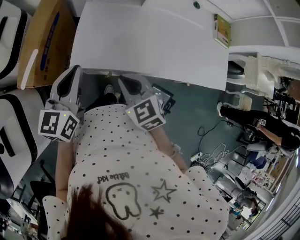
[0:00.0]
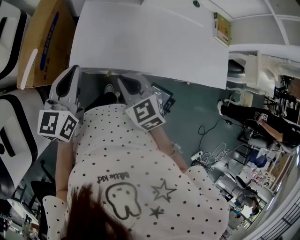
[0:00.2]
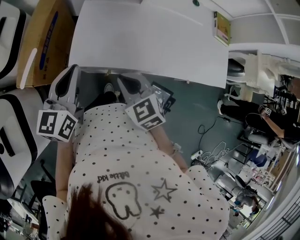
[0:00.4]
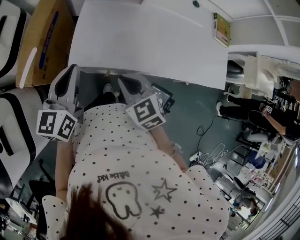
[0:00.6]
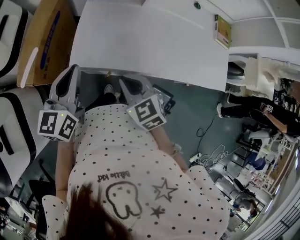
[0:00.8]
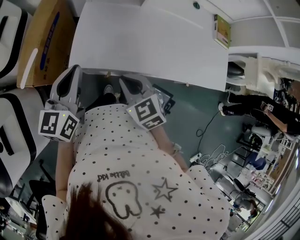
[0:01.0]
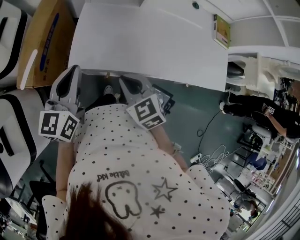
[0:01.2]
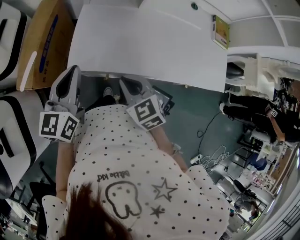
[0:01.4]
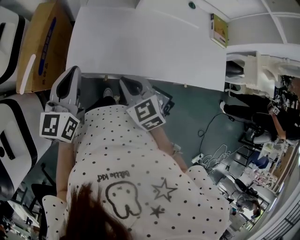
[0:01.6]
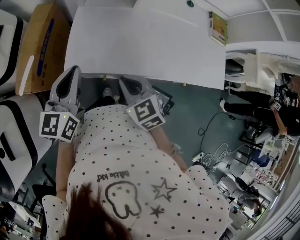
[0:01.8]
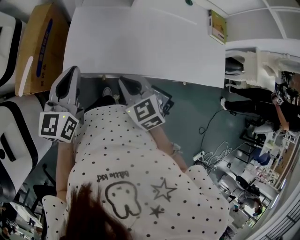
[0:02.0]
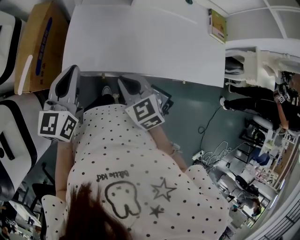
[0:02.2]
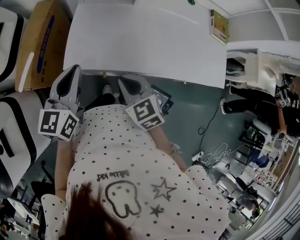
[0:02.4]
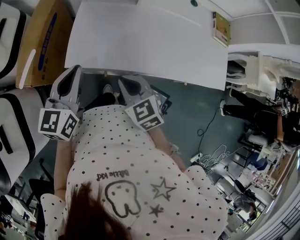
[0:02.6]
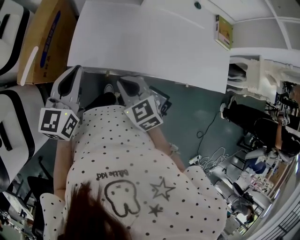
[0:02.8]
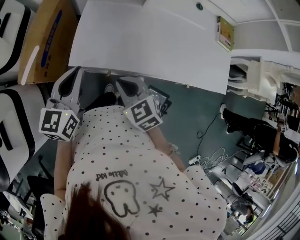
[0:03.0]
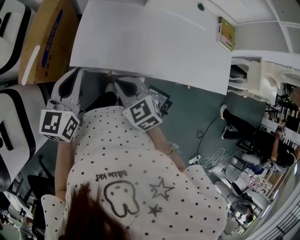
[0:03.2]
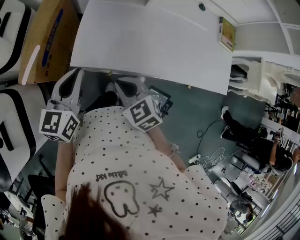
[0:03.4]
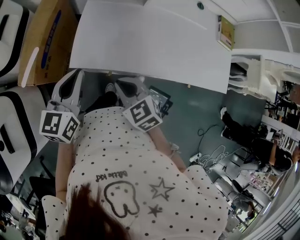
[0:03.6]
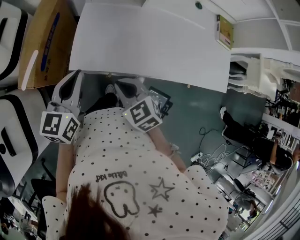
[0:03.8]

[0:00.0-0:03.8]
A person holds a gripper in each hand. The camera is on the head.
0:00.0 to 0:03.8: There are only small adjustments of the grippers.

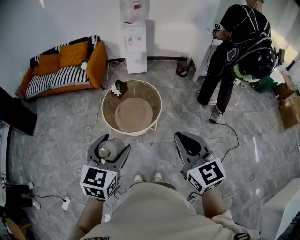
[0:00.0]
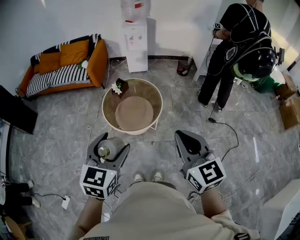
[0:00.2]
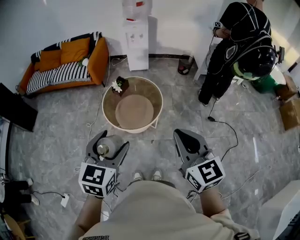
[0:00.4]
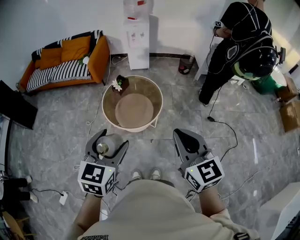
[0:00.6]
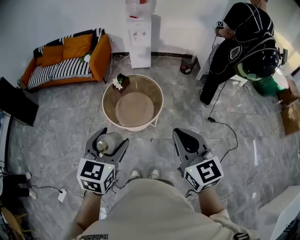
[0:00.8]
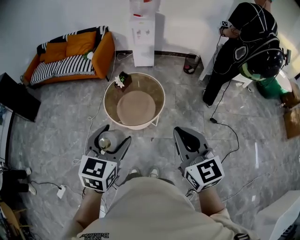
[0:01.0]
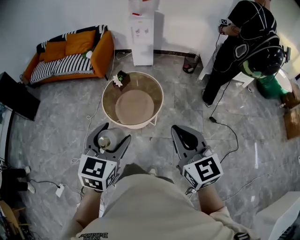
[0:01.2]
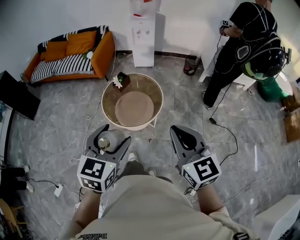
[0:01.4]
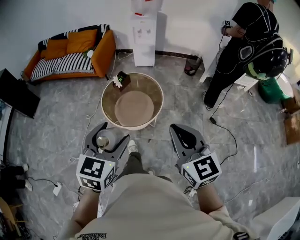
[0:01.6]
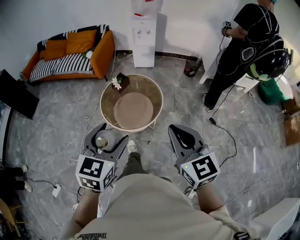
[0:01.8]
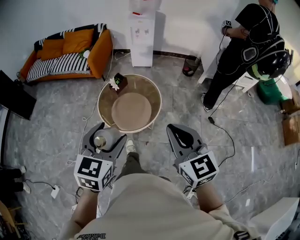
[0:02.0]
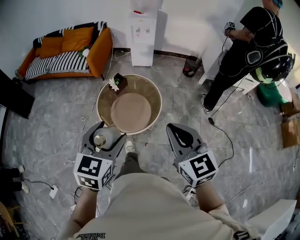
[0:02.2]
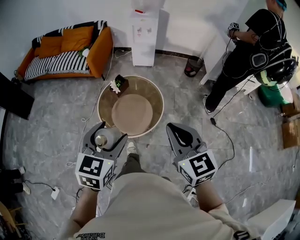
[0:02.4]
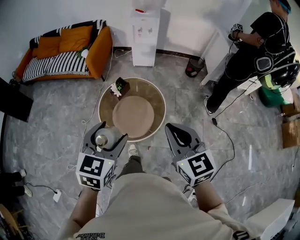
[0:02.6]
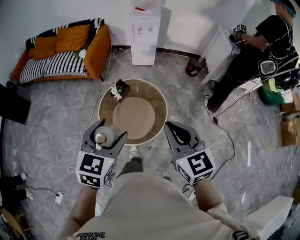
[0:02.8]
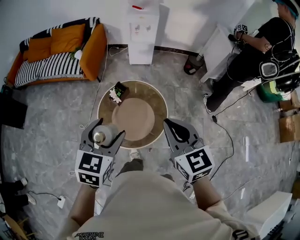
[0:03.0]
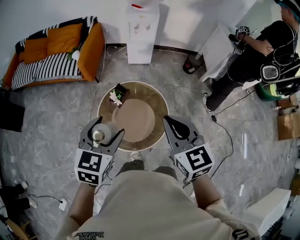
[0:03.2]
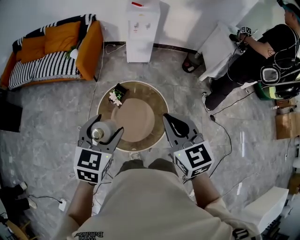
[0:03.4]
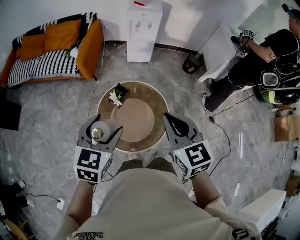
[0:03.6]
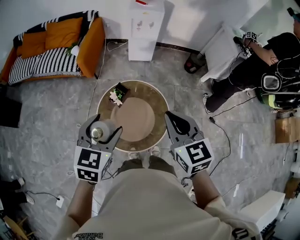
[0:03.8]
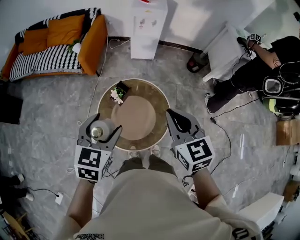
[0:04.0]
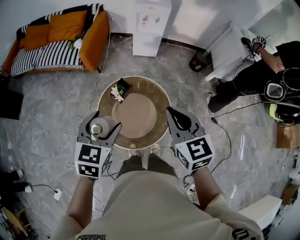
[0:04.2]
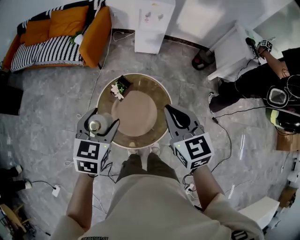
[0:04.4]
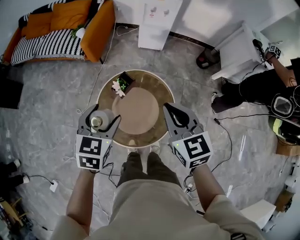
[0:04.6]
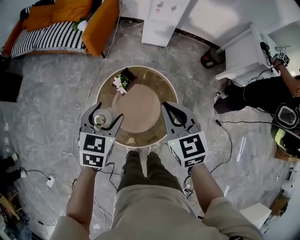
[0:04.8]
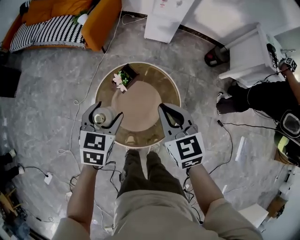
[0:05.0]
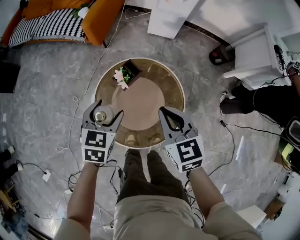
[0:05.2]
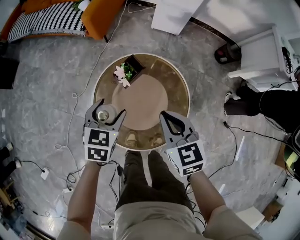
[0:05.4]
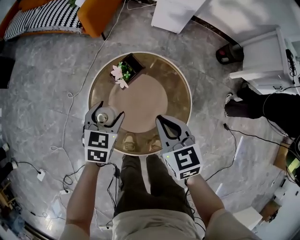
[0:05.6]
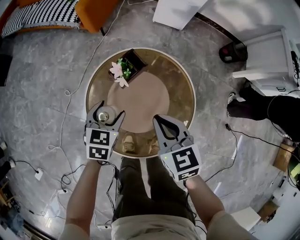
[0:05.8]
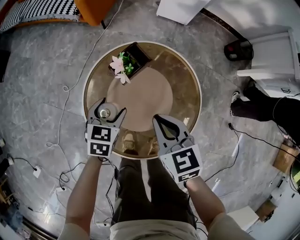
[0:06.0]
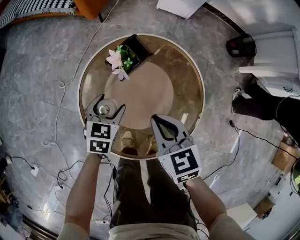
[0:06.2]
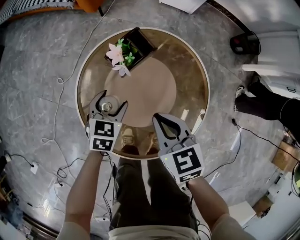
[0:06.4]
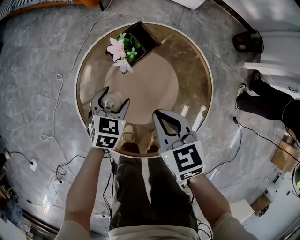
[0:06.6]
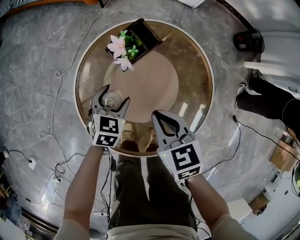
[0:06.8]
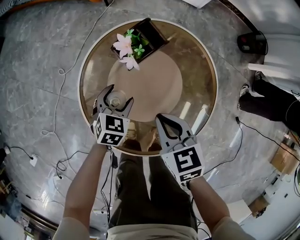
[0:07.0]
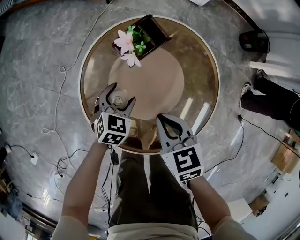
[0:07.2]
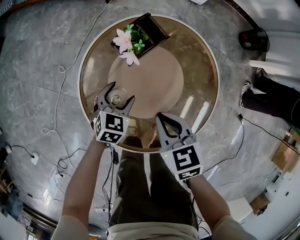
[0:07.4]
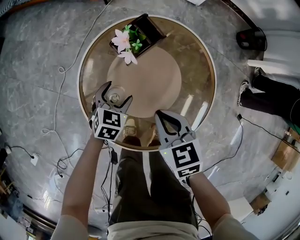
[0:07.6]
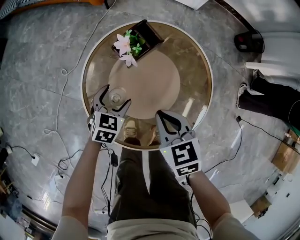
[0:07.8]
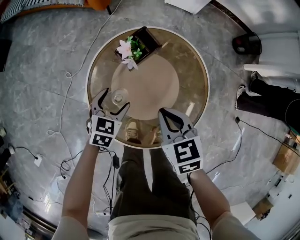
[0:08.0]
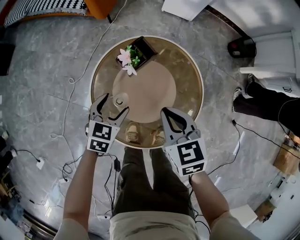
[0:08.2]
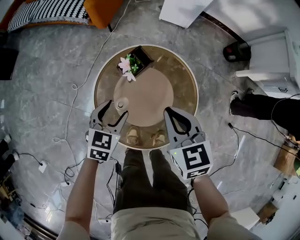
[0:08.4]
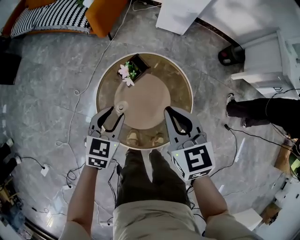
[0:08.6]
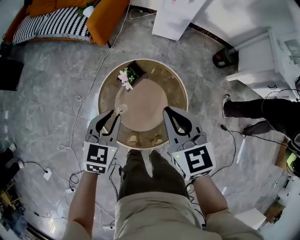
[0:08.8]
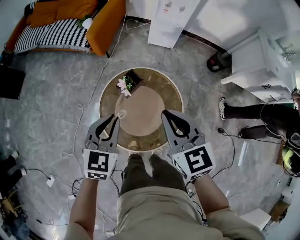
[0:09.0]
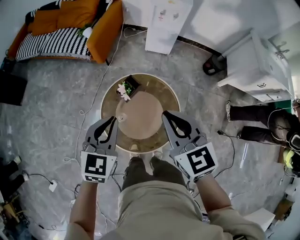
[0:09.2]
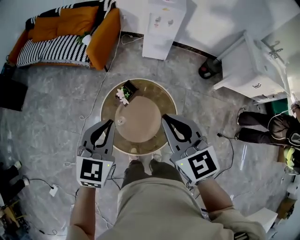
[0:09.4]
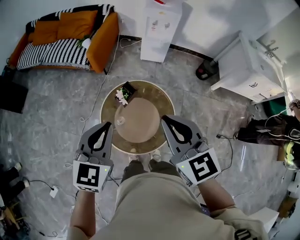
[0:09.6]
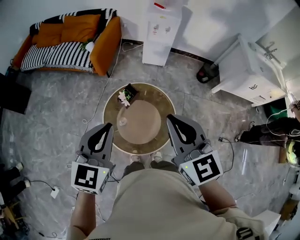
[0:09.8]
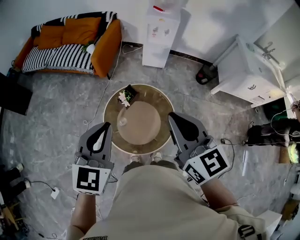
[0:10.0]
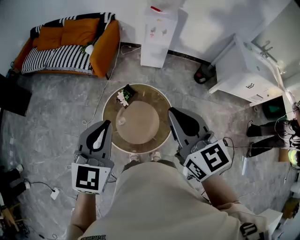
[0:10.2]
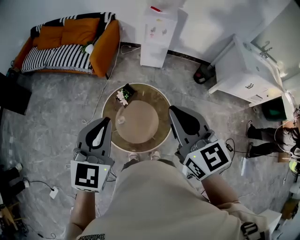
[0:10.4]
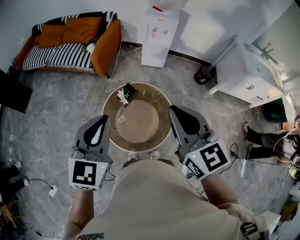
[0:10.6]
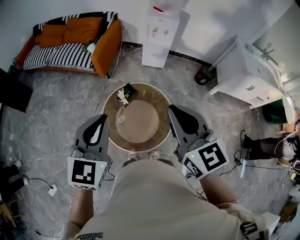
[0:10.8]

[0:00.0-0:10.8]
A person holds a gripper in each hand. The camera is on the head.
0:00.0 to 0:01.6: The left gripper is displaced to the right by roughly 5 cm. The right gripper changes place by approximately 5 cm.
0:01.6 to 0:03.0: Both grippers move forward, roughly 30 cm.
0:03.0 to 0:04.6: Both grippers travel together forward and downward, roughly 20 cm.
0:04.6 to 0:06.2: Both grippers travel together downward, about 40 cm. The right gripper swivels approximately 20 degrees.
0:06.2 to 0:07.8: The left gripper moves some 5 cm.
0:07.8 to 0:09.2: Both grippers move upward, about 50 cm. The right gripper turns by approximately 30 degrees. Meanwhile the left gripper turns by about 20 degrees, and closes up.
0:09.2 to 0:10.8: Both grippers travel together upward and backward, some 20 cm.

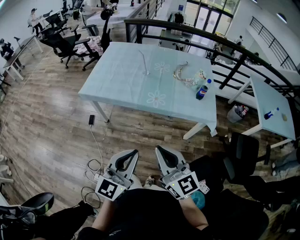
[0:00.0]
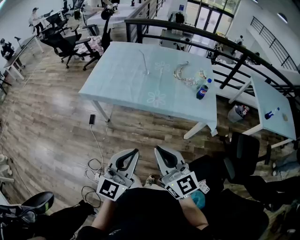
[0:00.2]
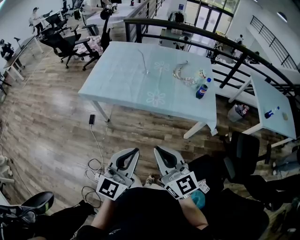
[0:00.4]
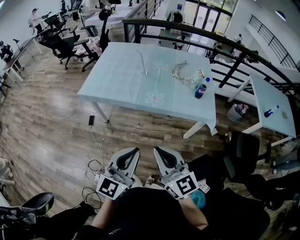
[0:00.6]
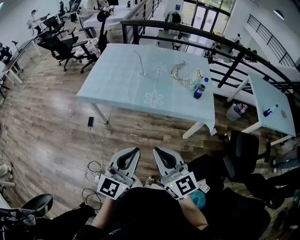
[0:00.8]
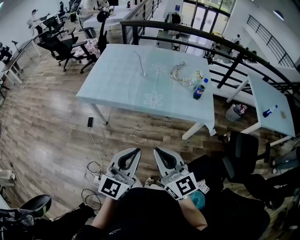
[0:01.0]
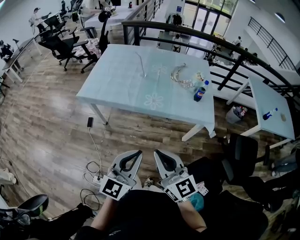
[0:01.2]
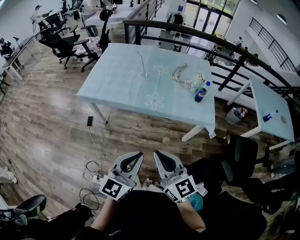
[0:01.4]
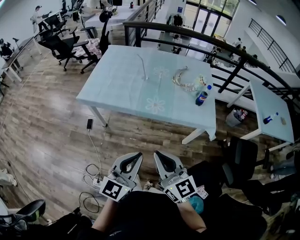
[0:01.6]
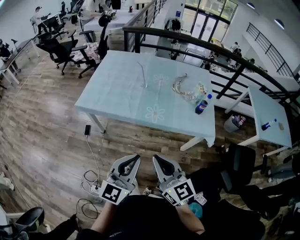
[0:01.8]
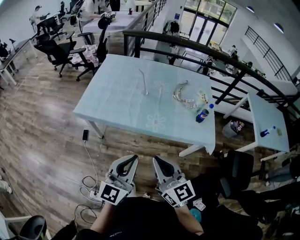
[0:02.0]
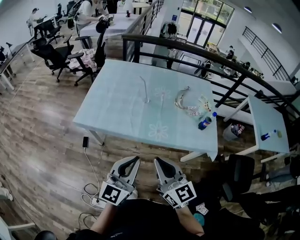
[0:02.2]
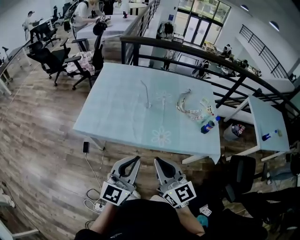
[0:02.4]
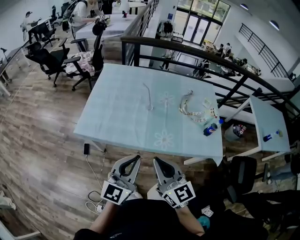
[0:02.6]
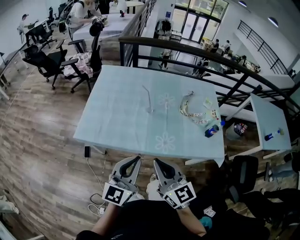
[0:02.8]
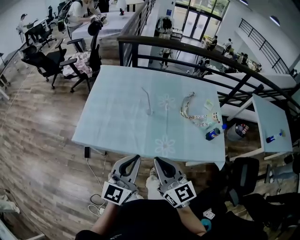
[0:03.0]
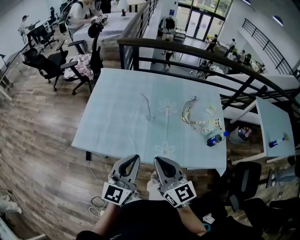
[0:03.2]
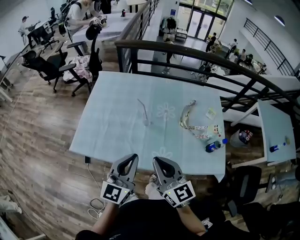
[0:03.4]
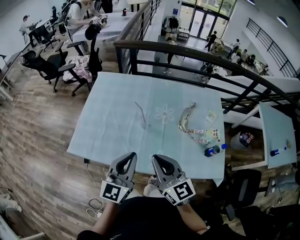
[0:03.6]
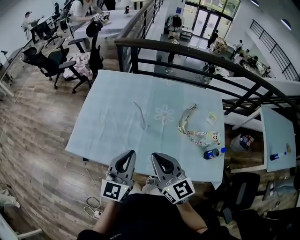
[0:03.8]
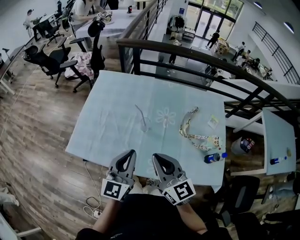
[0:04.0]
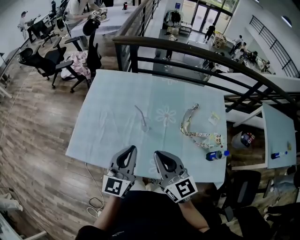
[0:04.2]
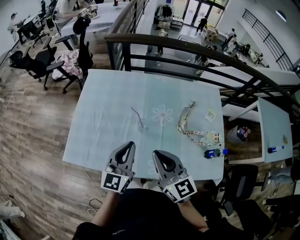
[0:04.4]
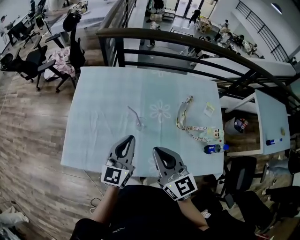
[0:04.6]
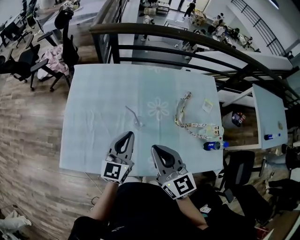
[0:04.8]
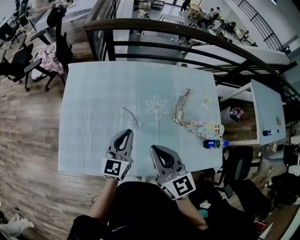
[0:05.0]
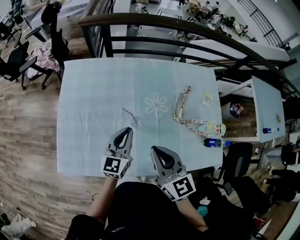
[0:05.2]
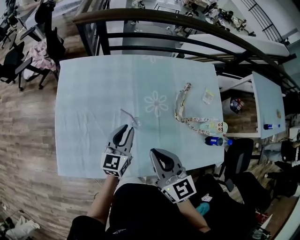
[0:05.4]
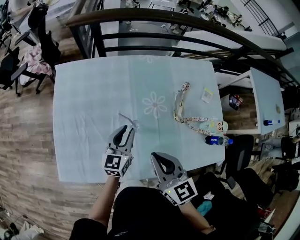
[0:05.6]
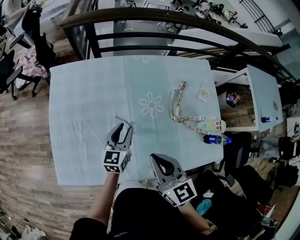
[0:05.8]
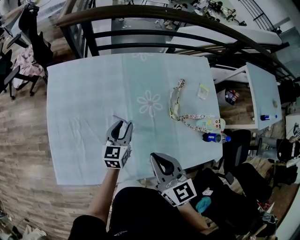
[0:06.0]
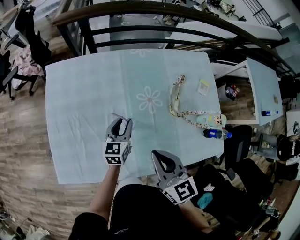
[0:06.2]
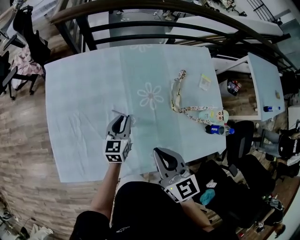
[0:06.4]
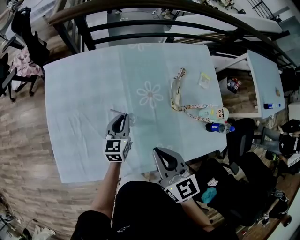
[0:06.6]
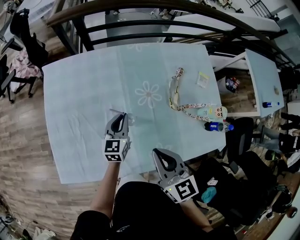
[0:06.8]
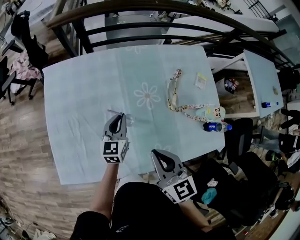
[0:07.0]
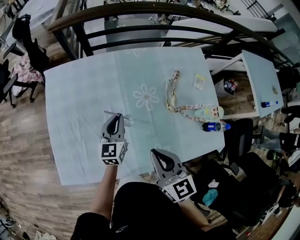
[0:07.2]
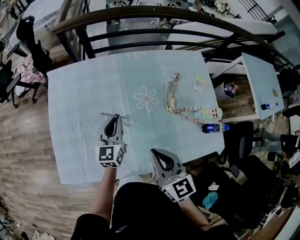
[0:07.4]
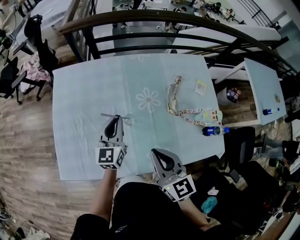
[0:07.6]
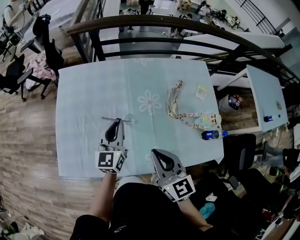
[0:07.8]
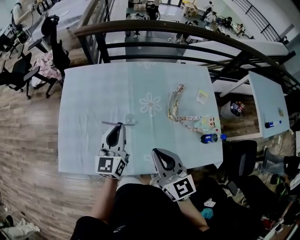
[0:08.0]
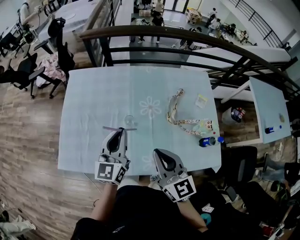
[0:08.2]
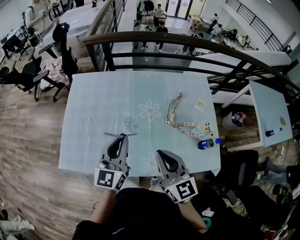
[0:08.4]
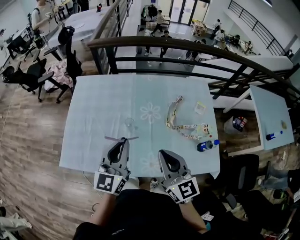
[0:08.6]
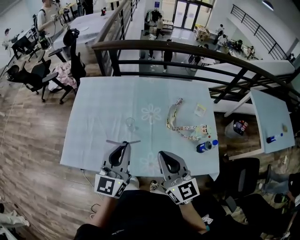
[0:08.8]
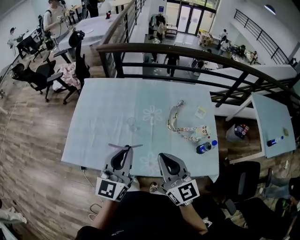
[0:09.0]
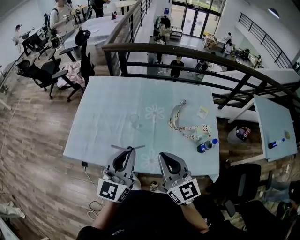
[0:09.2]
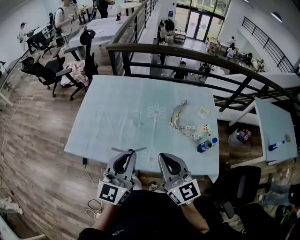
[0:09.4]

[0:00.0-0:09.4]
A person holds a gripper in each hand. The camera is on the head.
0:00.0 to 0:01.6: There are only small adjustments of the grippers.
0:01.6 to 0:03.2: The two grippers go some 35 cm forward.
0:03.2 to 0:04.8: The grippers both shift forward by roughly 25 cm.
0:04.8 to 0:06.2: The right gripper heads downward, covering approximately 5 cm; the left gripper travels downward and forward by some 20 cm, turns by about 20 degrees, and opens its fingers.
0:06.2 to 0:07.8: The right gripper heads backward, covering some 5 cm. Meanwhile the left gripper heads upward and backward, covering approximately 15 cm, swivels about 20 degrees, and closes up.
0:07.8 to 0:09.4: The right gripper goes approximately 20 cm backward, upward and to the right, while the left gripper heads backward and upward, covering roughly 35 cm.
